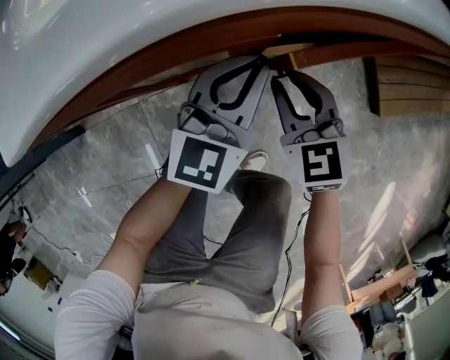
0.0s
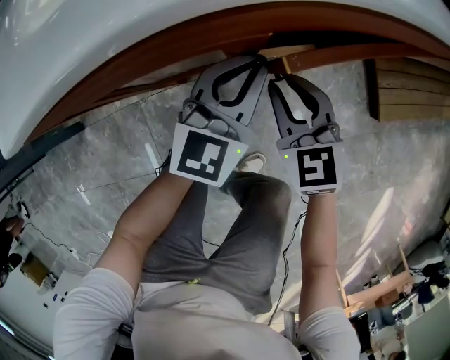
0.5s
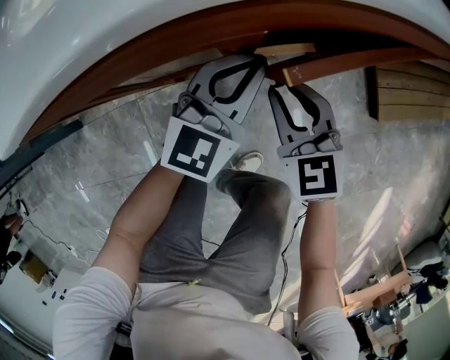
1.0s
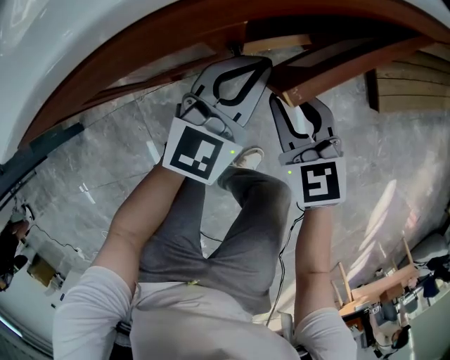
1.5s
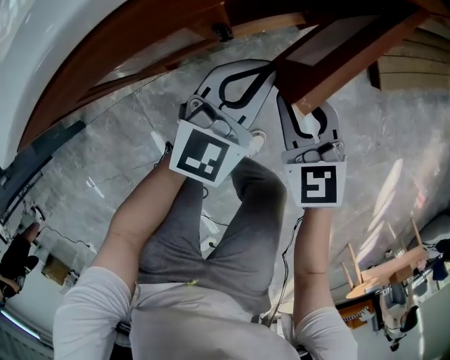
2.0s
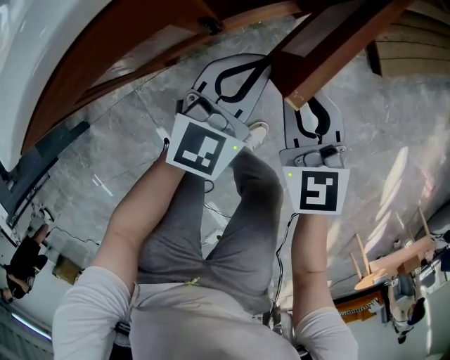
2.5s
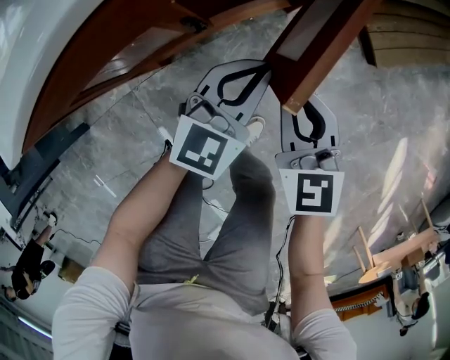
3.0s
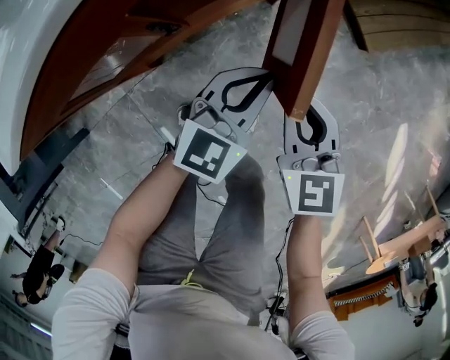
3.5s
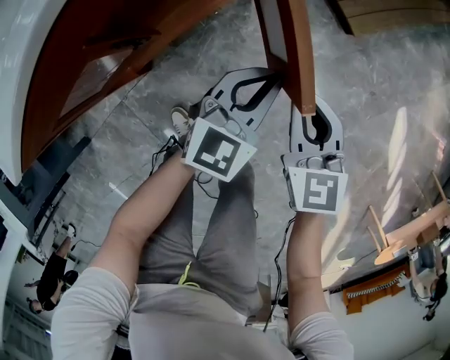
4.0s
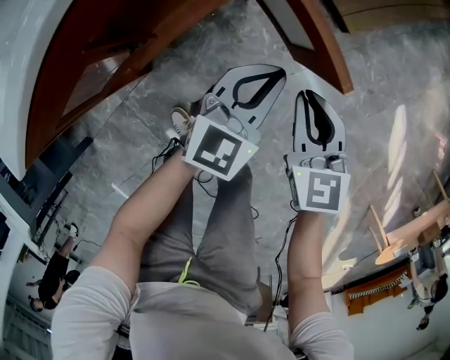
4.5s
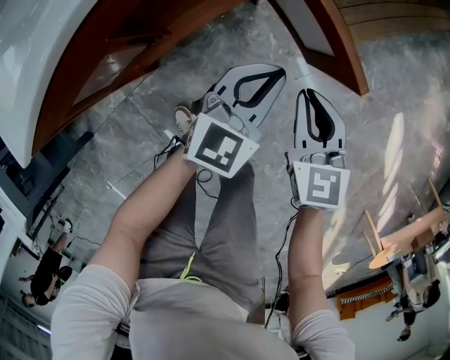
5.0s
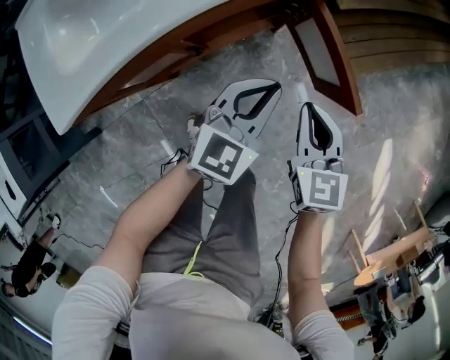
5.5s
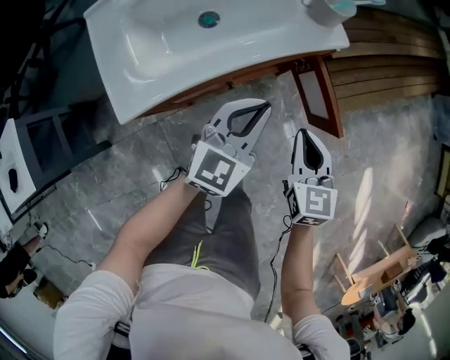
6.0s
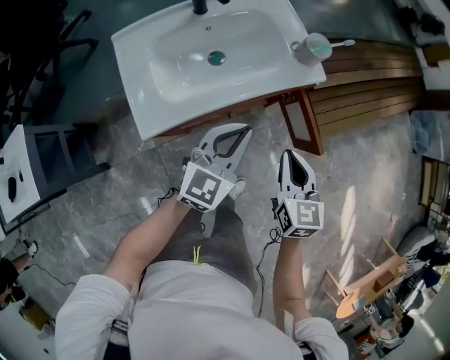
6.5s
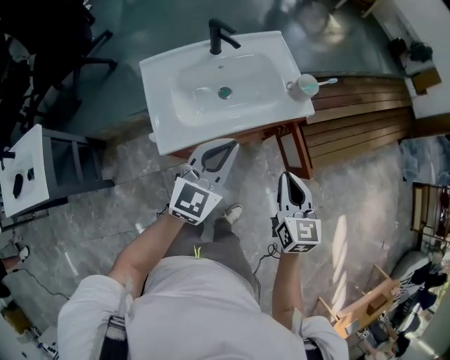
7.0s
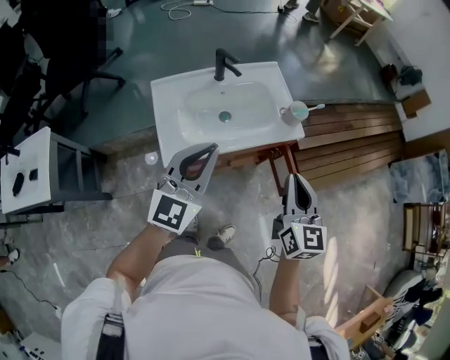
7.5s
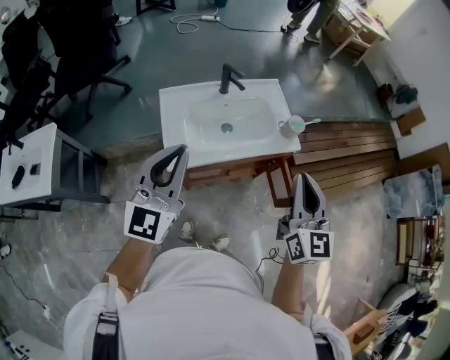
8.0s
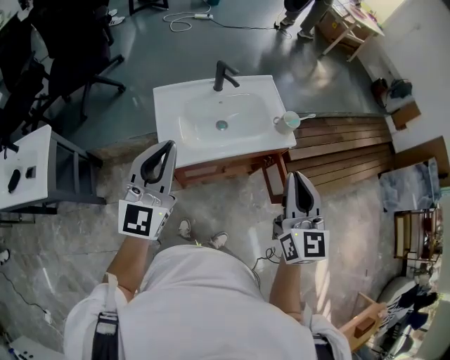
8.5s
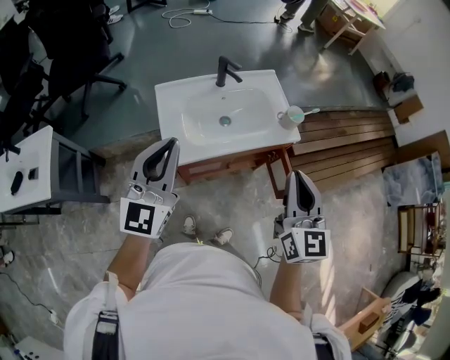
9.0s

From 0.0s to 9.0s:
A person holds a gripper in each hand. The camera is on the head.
From 0.0s to 2.0s: The right gripper travels to the right and backward by approximately 10 cm; the left gripper is displaced to the right by about 10 cm.
From 2.0s to 4.5s: The grippers both shift to the right by roughly 25 cm. The right gripper changes its angle by about 30 degrees.
From 4.5s to 7.0s: Both grippers move upward and to the left, about 60 cm. The left gripper turns by approximately 30 degrees.
From 7.0s to 9.0s: The right gripper shifts roughly 20 cm upward, and swivels roughly 20 degrees; the left gripper goes roughly 25 cm upward, to the left and backward, and turns by approximately 20 degrees.

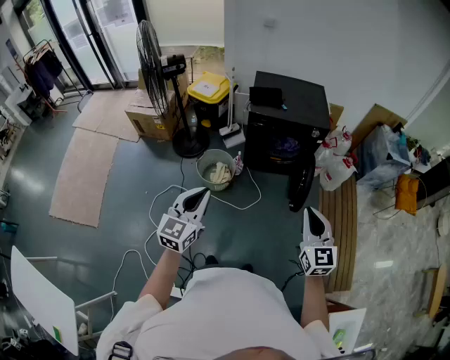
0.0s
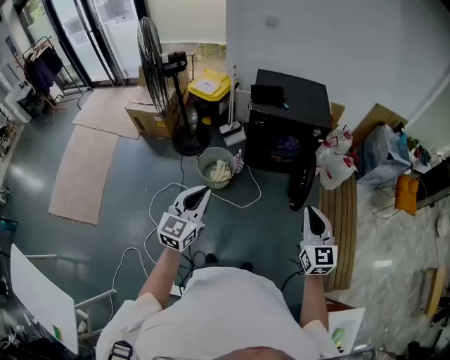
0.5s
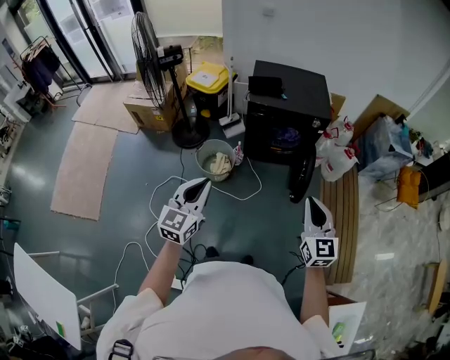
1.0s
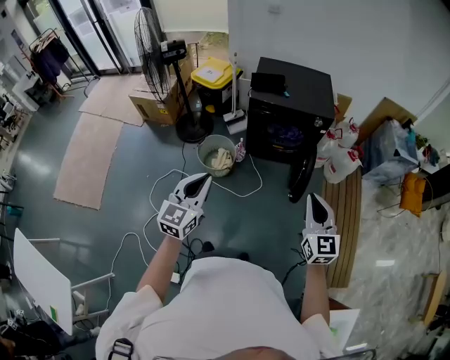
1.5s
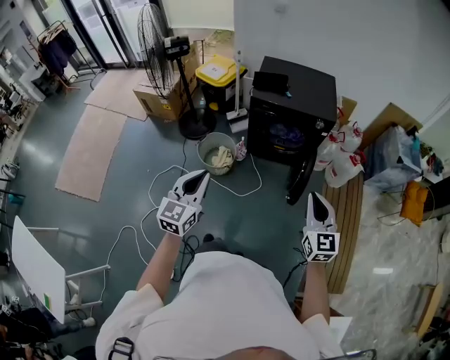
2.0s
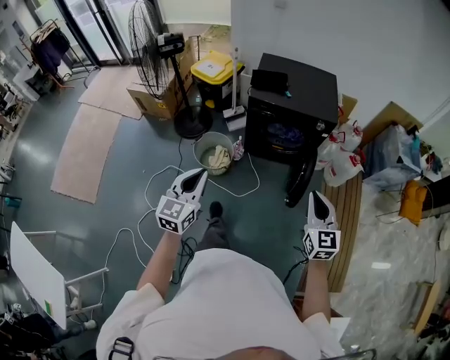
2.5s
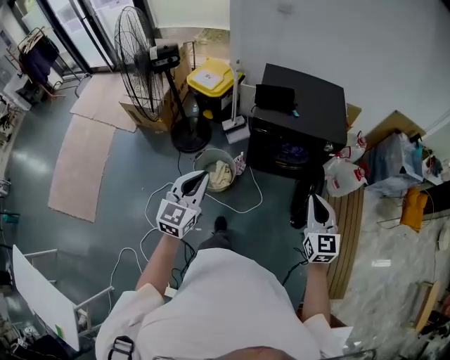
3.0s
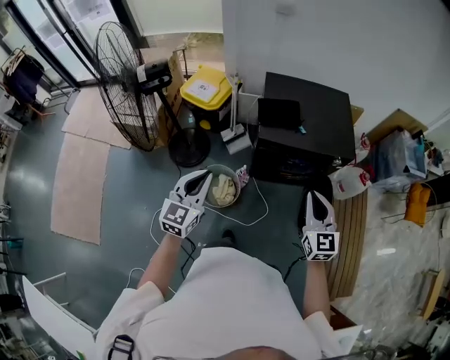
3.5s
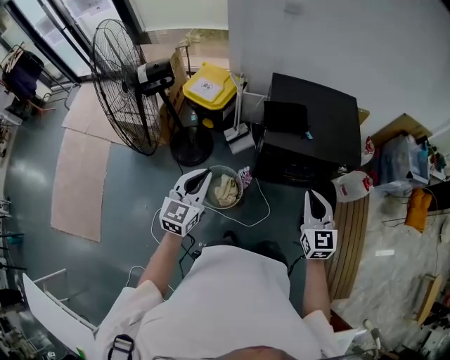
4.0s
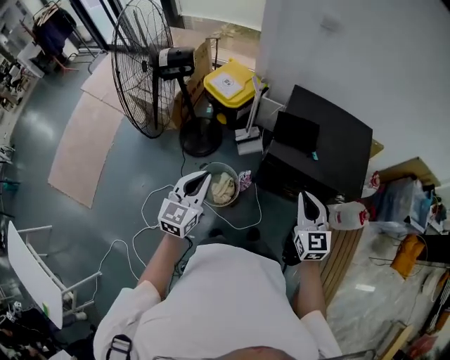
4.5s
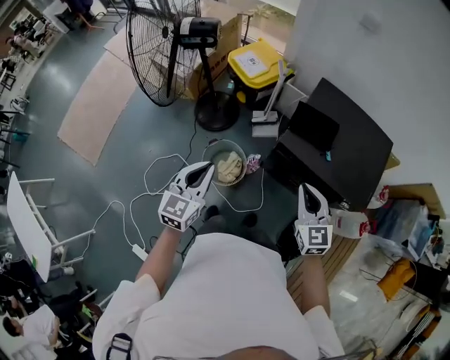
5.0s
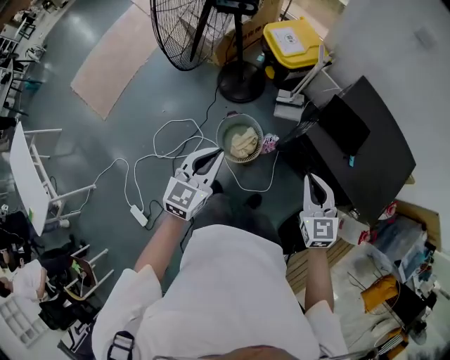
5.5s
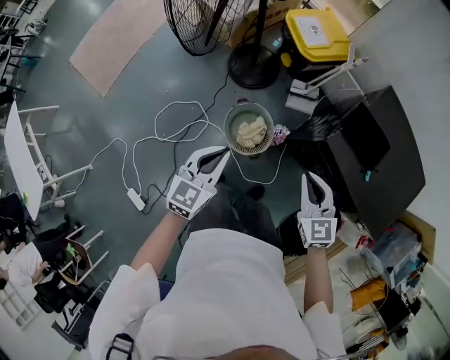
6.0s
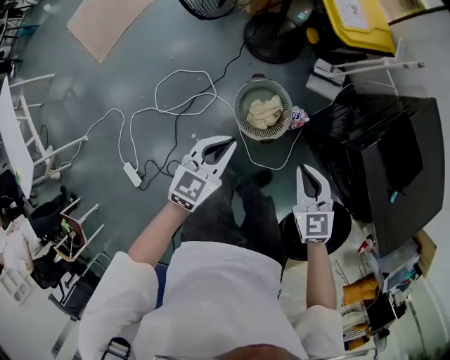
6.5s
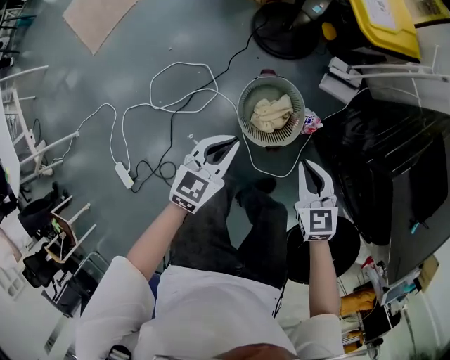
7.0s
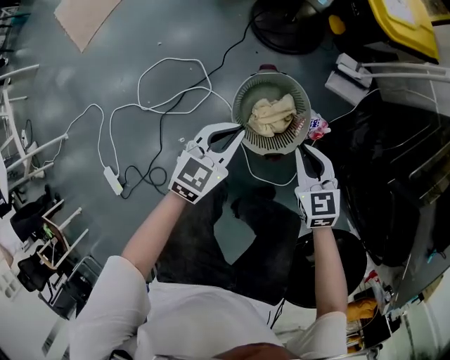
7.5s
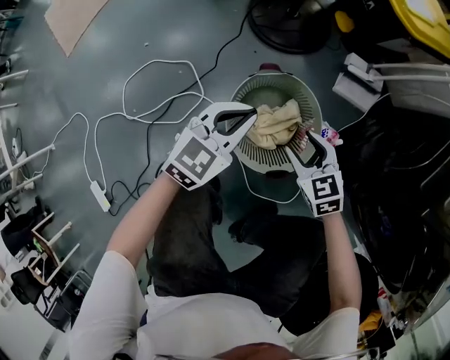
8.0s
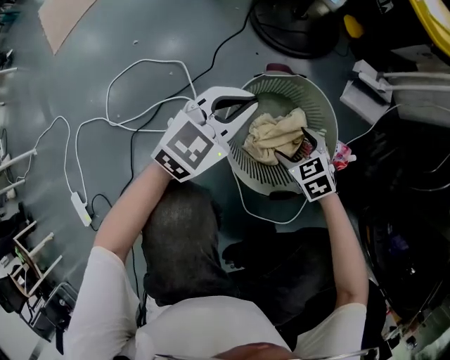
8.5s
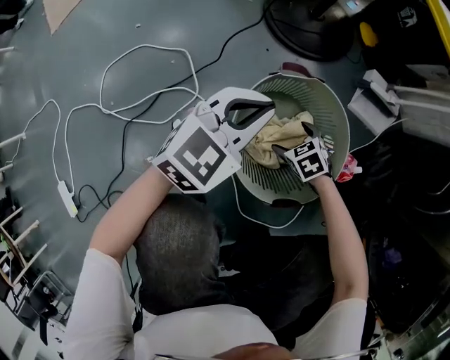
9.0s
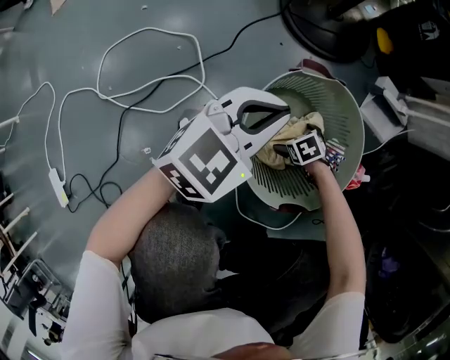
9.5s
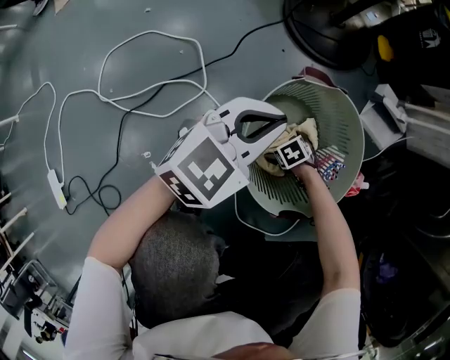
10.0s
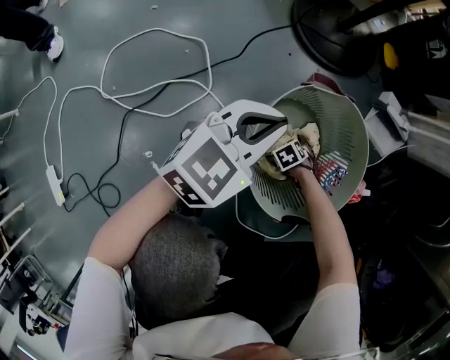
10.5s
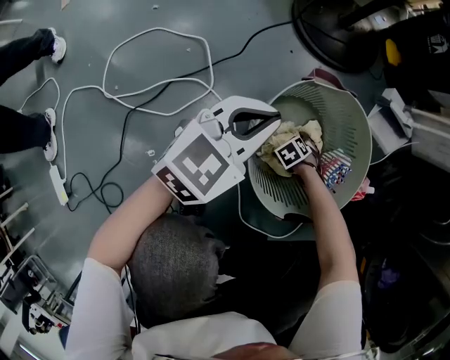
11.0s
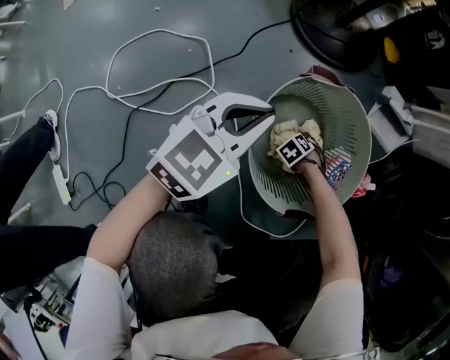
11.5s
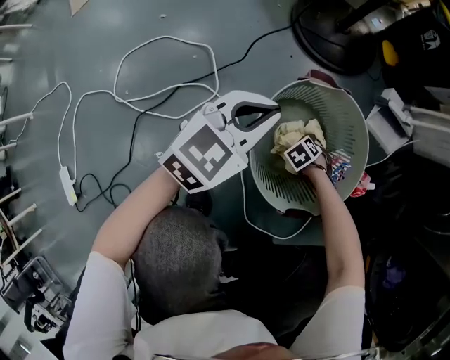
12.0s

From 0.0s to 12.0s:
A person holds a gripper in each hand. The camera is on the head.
From 0.0s to 2.0s: The left gripper shifts about 5 cm to the right, while the right gripper heads to the right and forward, covering approximately 10 cm.
From 2.0s to 4.0s: Both grippers are carried forward and to the left, approximately 40 cm.
From 4.0s to 6.0s: The right gripper changes place by roughly 20 cm, and turns by roughly 50 degrees. Meanwhile the left gripper goes roughly 15 cm downward, and rotates roughly 30 degrees.
From 6.0s to 8.0s: The two grippers go some 50 cm downward. The right gripper turns by about 30 degrees, and opens its fingers.
From 8.0s to 10.0s: The left gripper goes roughly 10 cm downward. Meanwhile the right gripper is displaced downward by approximately 40 cm, tips its fingers downward by roughly 40 degrees, and opens up.
From 10.0s to 12.0s: The right gripper closes.

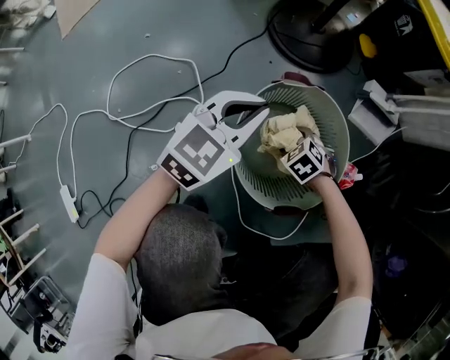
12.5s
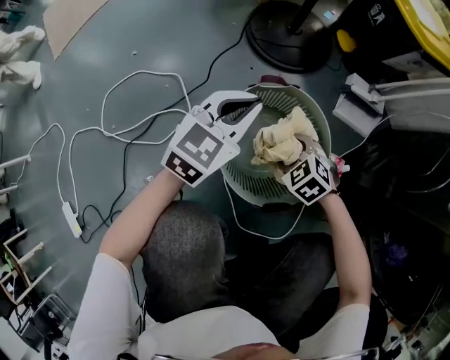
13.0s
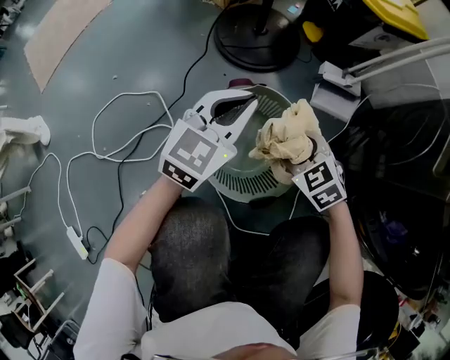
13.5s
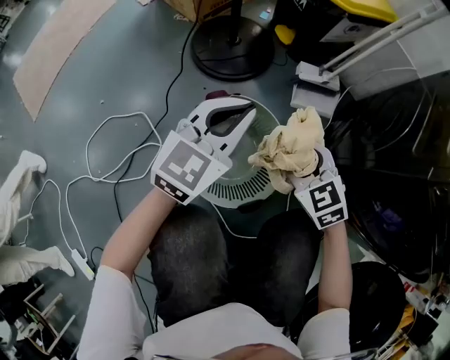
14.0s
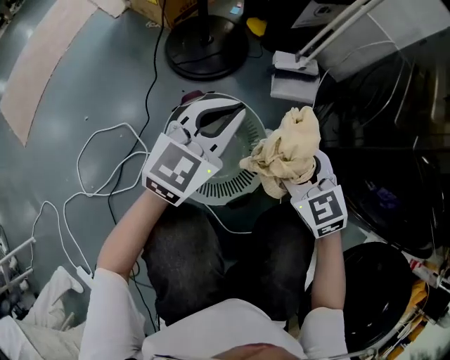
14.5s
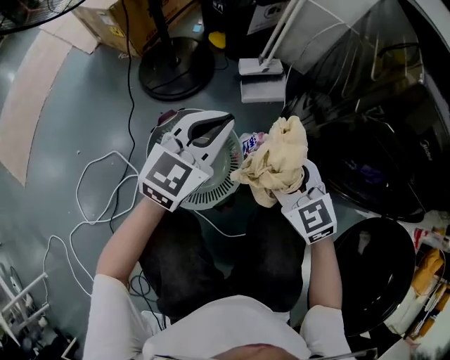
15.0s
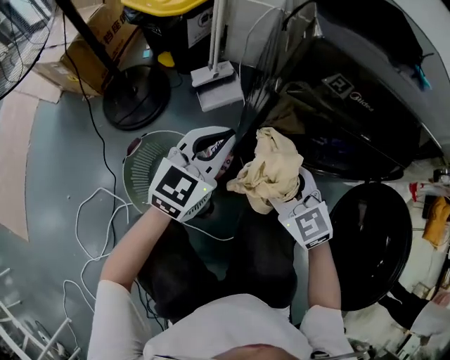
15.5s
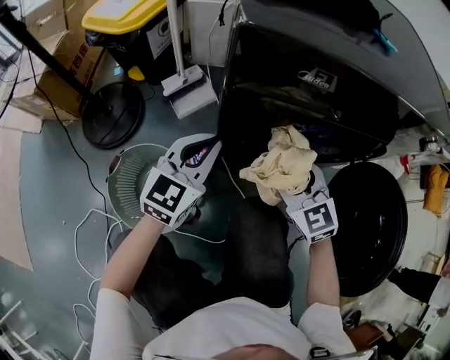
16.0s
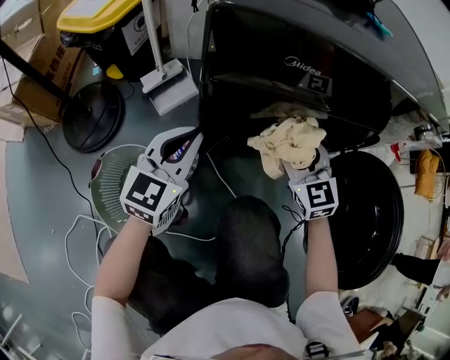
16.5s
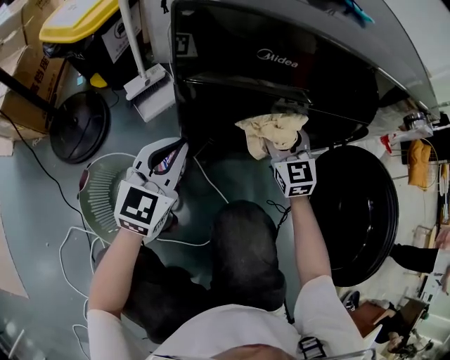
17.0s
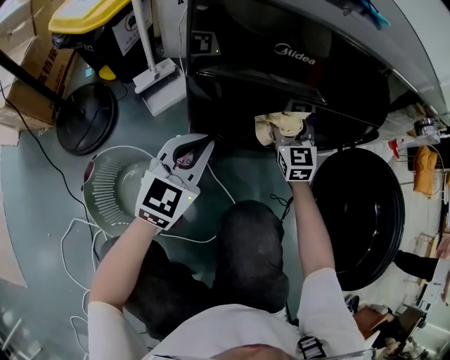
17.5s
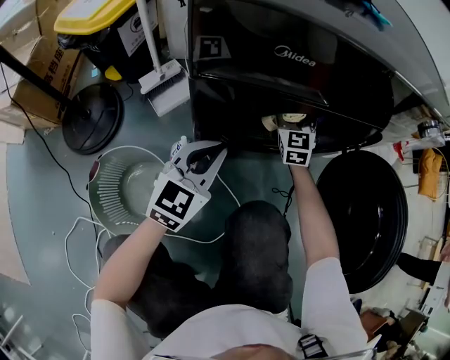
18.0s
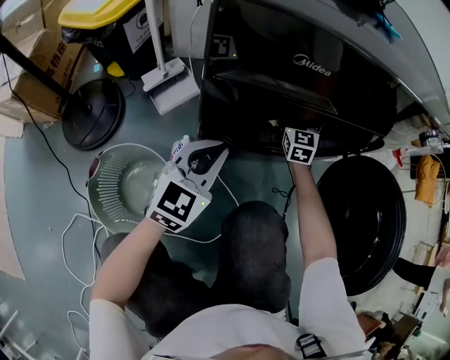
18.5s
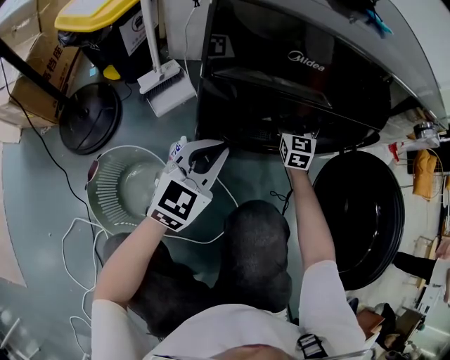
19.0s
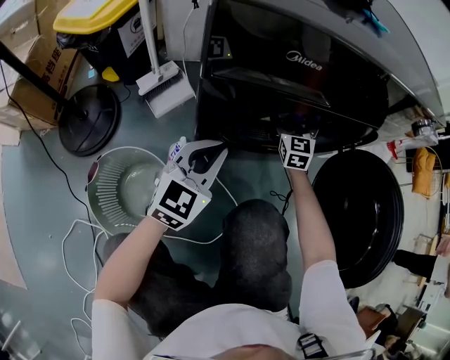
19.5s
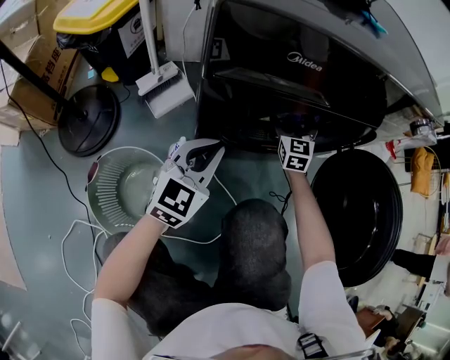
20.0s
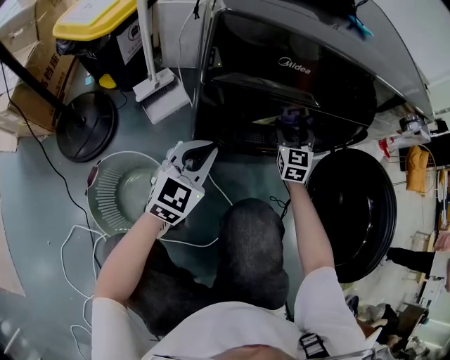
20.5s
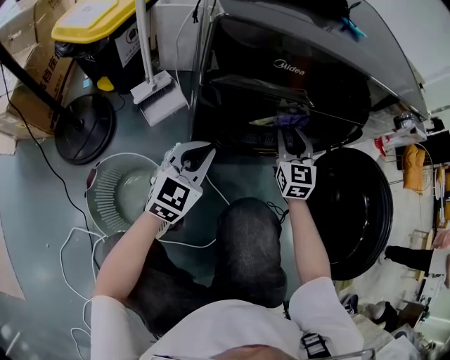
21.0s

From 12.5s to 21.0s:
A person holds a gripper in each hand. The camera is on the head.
From 12.5s to 14.5s: The left gripper travels to the right and upward by about 20 cm. Meanwhile the right gripper shifts about 35 cm upward and to the right, and points its fingers roughly 40 degrees further upward.
From 14.5s to 16.5s: The right gripper shifts by approximately 35 cm, and turns by roughly 50 degrees; the left gripper shifts by about 25 cm, and changes its angle by roughly 30 degrees.
From 16.5s to 19.0s: The right gripper moves forward and downward, about 20 cm, swivels roughly 20 degrees, and opens, while the left gripper moves to the right, about 5 cm.
From 19.0s to 21.0s: The right gripper moves backward and upward, approximately 10 cm, and closes.
